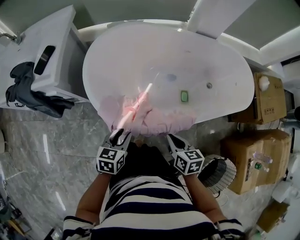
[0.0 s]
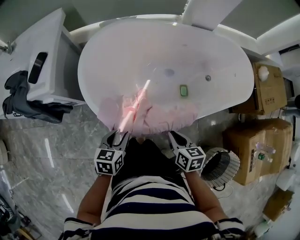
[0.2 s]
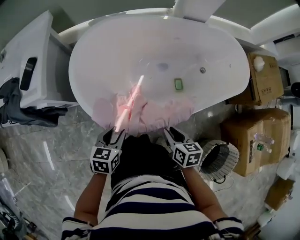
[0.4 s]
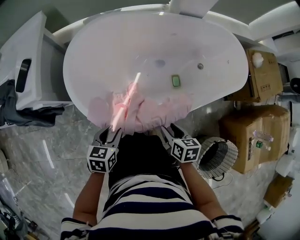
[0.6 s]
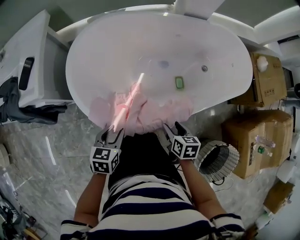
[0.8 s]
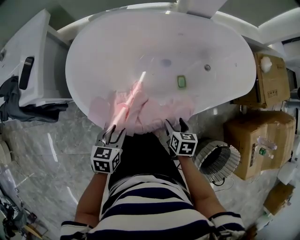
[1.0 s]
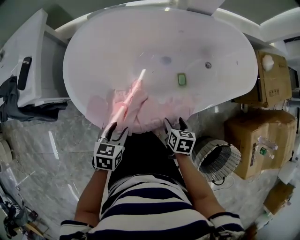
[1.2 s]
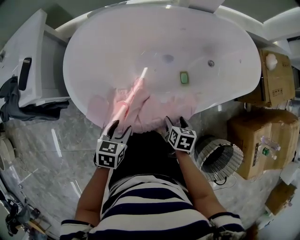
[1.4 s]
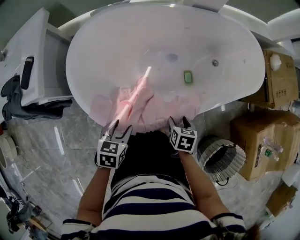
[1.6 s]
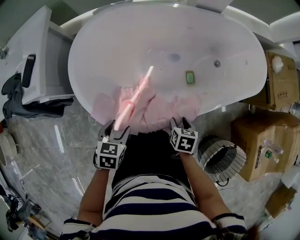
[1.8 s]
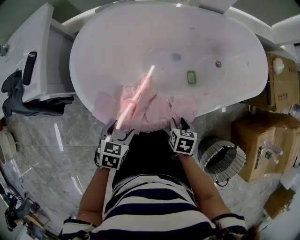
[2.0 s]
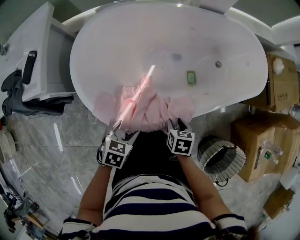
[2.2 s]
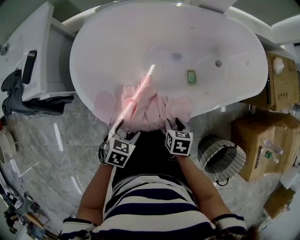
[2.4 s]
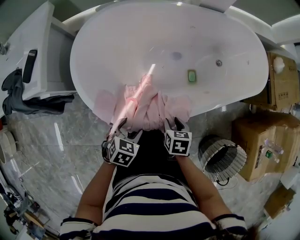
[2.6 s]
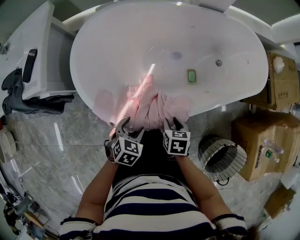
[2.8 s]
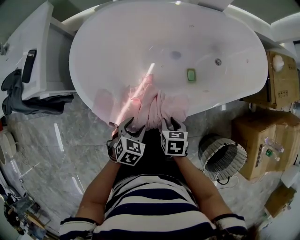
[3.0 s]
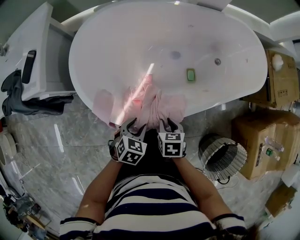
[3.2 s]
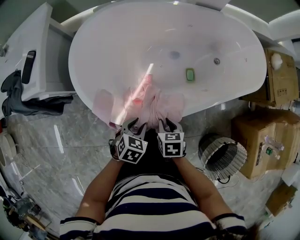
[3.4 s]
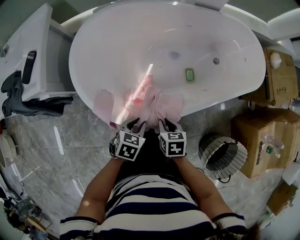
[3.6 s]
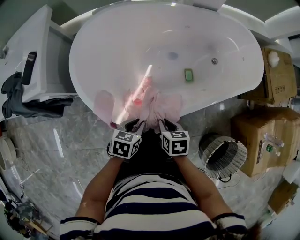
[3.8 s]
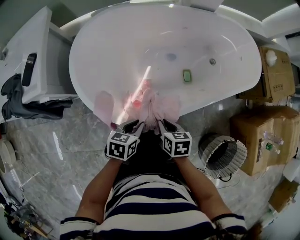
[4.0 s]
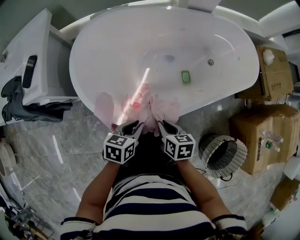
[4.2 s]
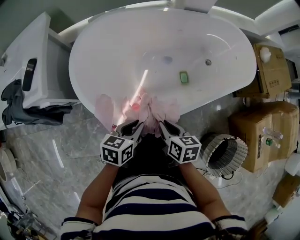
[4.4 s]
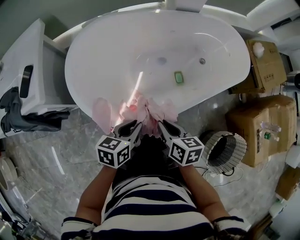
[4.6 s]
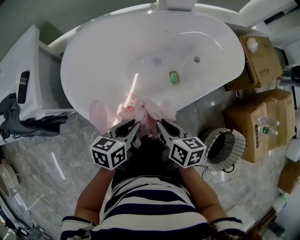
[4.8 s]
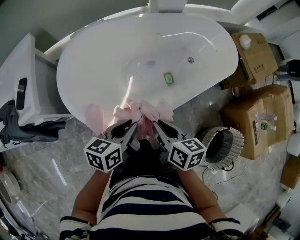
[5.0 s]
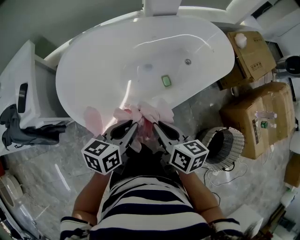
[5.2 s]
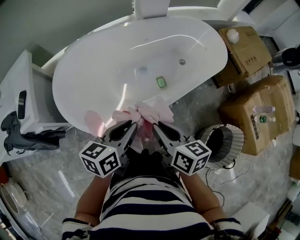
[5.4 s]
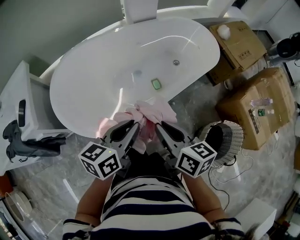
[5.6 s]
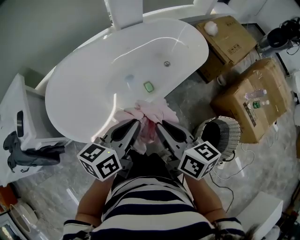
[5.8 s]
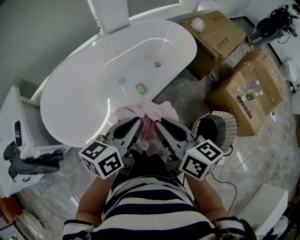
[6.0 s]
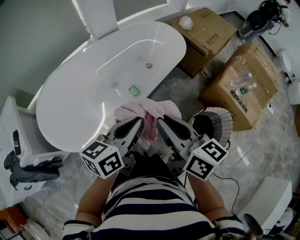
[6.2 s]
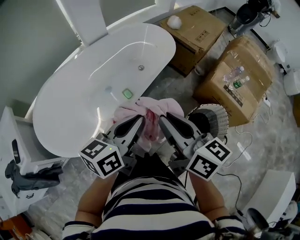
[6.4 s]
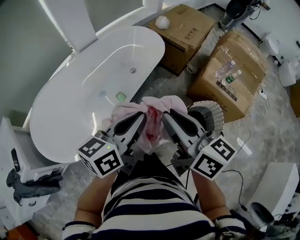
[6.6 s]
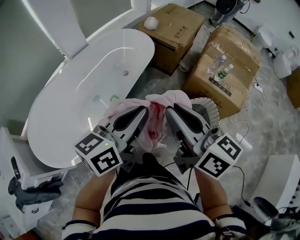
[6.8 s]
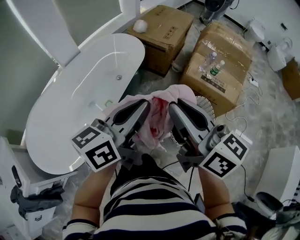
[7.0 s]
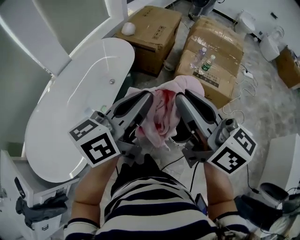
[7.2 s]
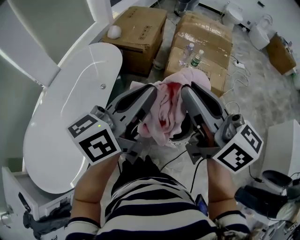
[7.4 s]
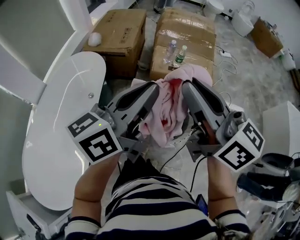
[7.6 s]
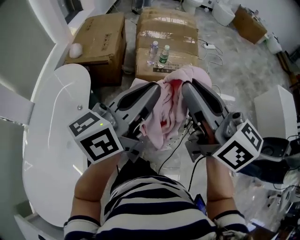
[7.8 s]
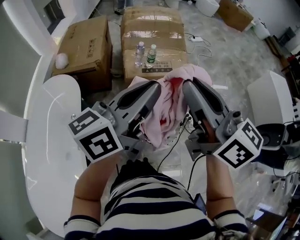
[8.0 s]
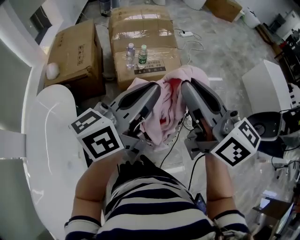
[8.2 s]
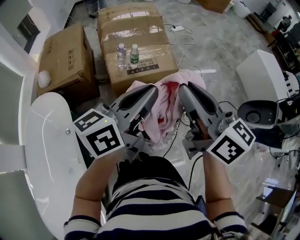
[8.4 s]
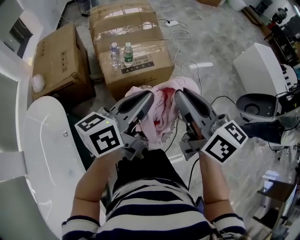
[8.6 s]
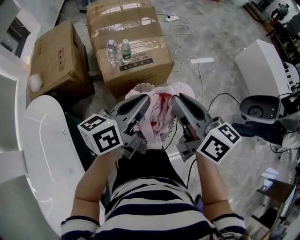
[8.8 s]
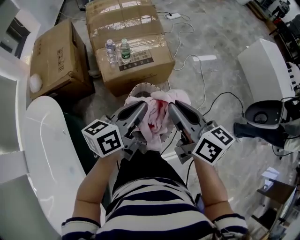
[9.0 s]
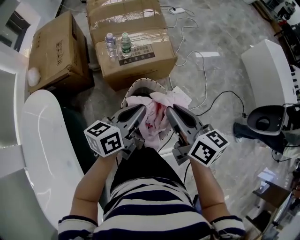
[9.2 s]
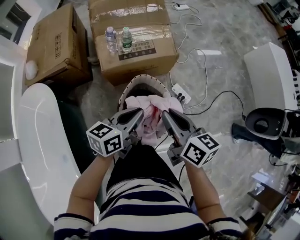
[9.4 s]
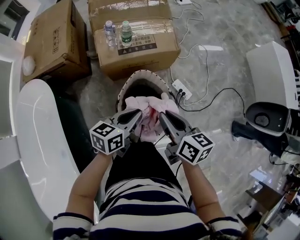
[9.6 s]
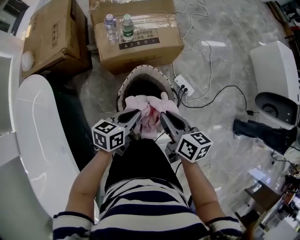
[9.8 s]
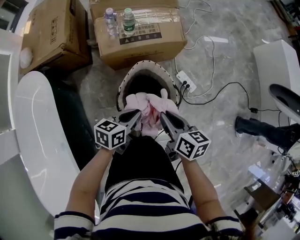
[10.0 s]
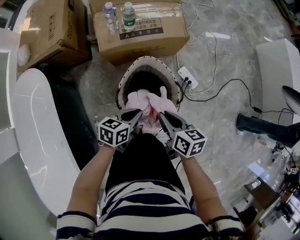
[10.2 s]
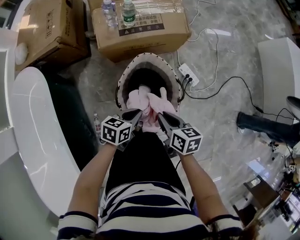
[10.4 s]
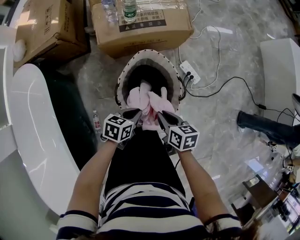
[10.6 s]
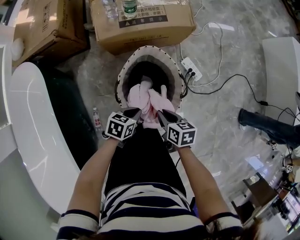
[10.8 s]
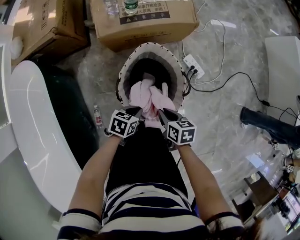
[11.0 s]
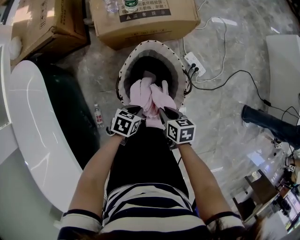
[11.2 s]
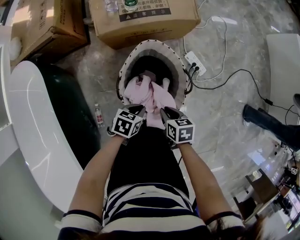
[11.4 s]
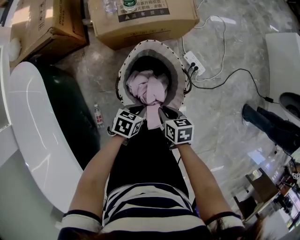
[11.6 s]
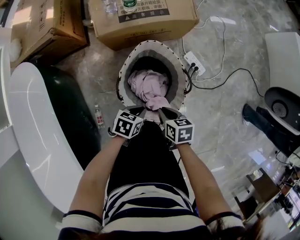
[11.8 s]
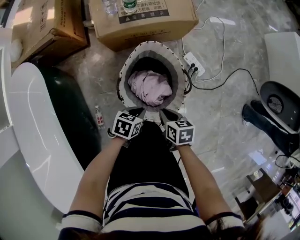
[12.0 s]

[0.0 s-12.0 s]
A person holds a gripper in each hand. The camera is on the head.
0.0 to 1.6 s: The right gripper heads downward and to the right, covering some 10 cm, turns by some 30 degrees, and opens up.
1.6 to 3.0 s: The right gripper is displaced to the left by approximately 5 cm, and closes up; the left gripper shifts by roughly 5 cm.
3.0 to 4.4 s: The two grippers go roughly 10 cm upward. The right gripper swivels roughly 20 degrees, while the left gripper swivels some 30 degrees, and closes.
4.4 to 6.0 s: The right gripper is displaced upward and to the right by about 30 cm, and tips its fingers upward by roughly 30 degrees; the left gripper goes approximately 30 cm to the right and upward, and rotates roughly 30 degrees.
6.0 to 7.6 s: The right gripper shifts by roughly 40 cm, and swivels about 50 degrees. The left gripper moves roughly 40 cm, and changes its angle by about 50 degrees.
7.6 to 9.0 s: The grippers both shift downward by some 20 cm. The left gripper swivels some 30 degrees, while the right gripper rotates about 40 degrees.
9.0 to 10.4 s: Both grippers move downward, approximately 30 cm. The left gripper tilts its fingers roughly 30 degrees downward. The right gripper points its fingers roughly 30 degrees further downward.
10.4 to 12.0 s: Both grippers move downward, approximately 10 cm.

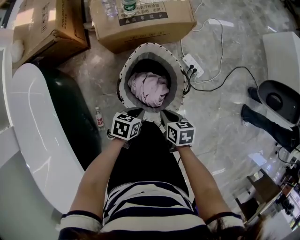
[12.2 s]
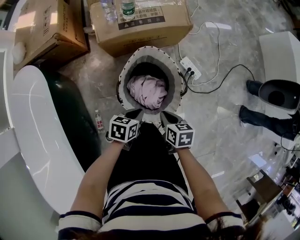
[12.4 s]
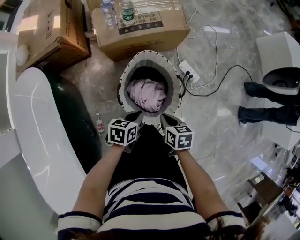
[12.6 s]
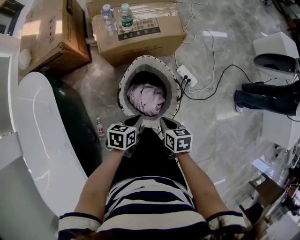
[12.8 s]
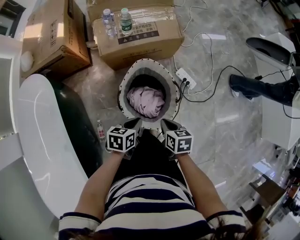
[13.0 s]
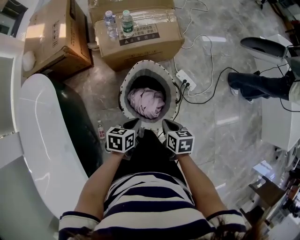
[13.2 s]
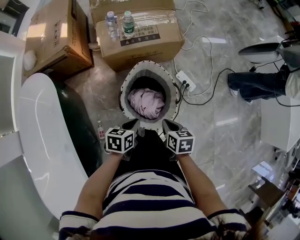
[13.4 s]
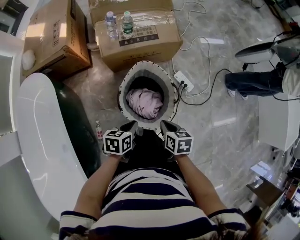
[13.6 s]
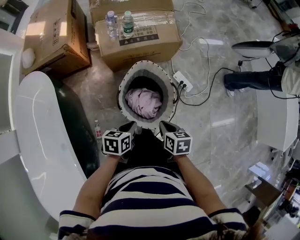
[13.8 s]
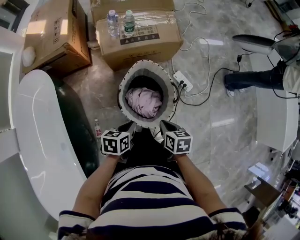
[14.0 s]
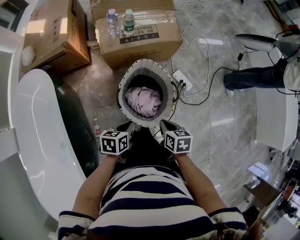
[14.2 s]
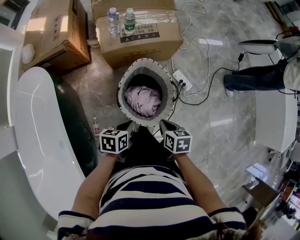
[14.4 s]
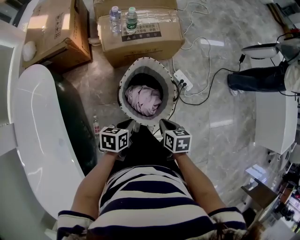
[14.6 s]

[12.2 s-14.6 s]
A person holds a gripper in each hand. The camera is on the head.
12.2 to 13.4 s: Both grippers move upward, roughly 10 cm.
13.4 to 14.6 s: The grippers move only a little.

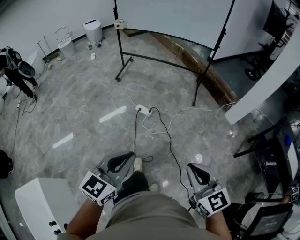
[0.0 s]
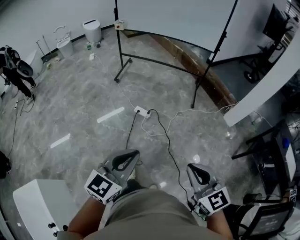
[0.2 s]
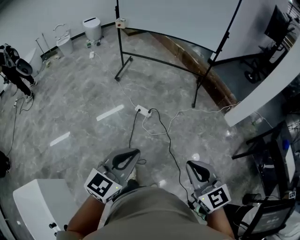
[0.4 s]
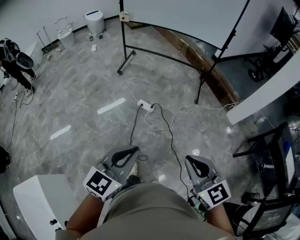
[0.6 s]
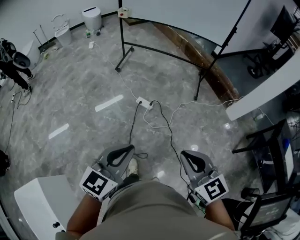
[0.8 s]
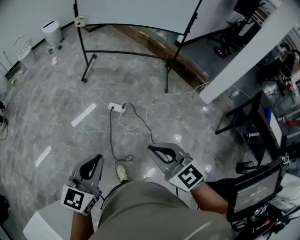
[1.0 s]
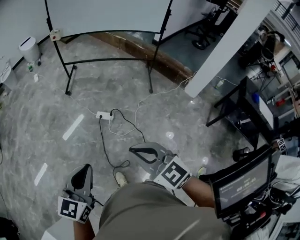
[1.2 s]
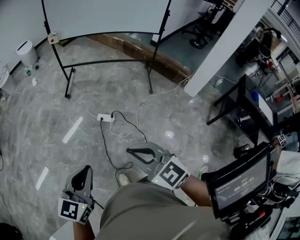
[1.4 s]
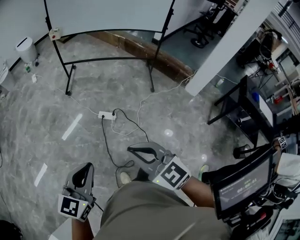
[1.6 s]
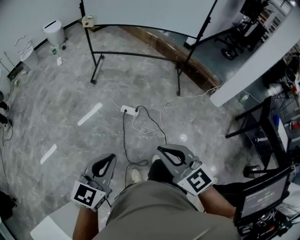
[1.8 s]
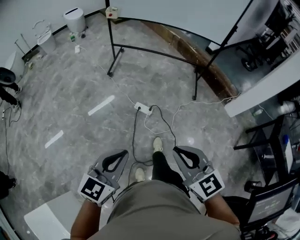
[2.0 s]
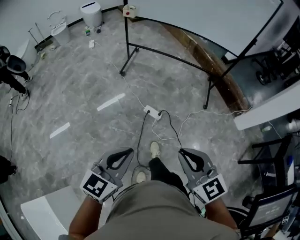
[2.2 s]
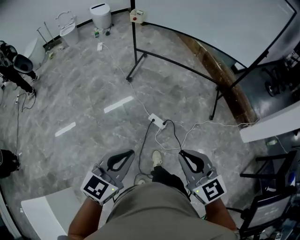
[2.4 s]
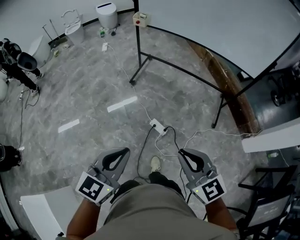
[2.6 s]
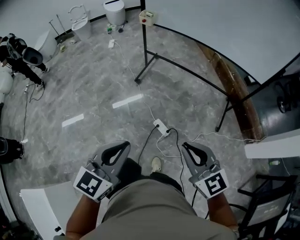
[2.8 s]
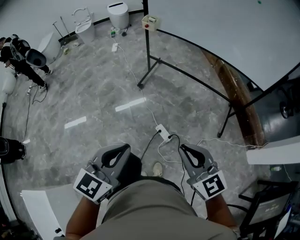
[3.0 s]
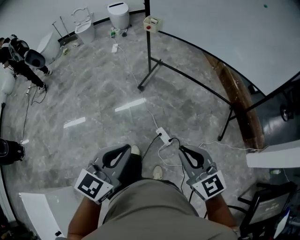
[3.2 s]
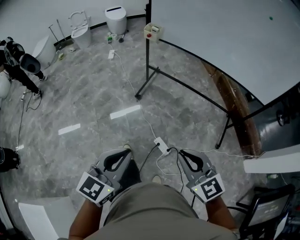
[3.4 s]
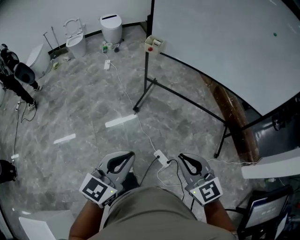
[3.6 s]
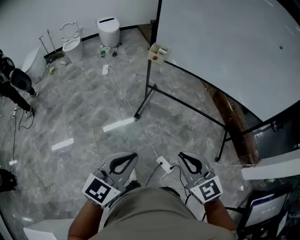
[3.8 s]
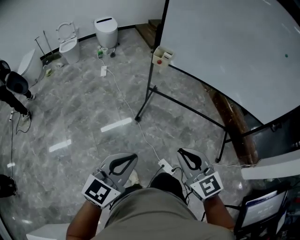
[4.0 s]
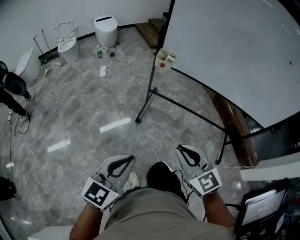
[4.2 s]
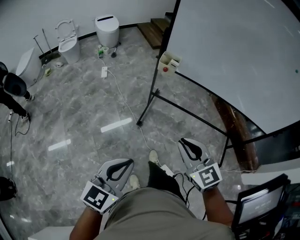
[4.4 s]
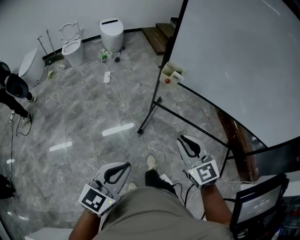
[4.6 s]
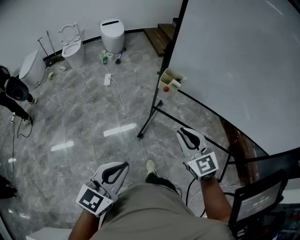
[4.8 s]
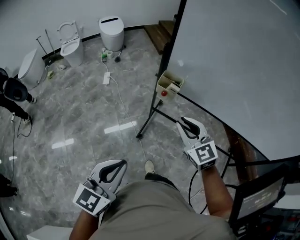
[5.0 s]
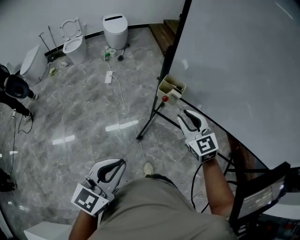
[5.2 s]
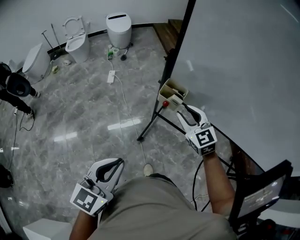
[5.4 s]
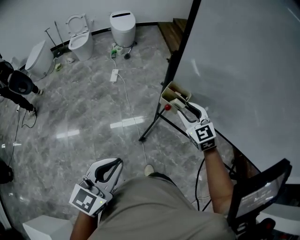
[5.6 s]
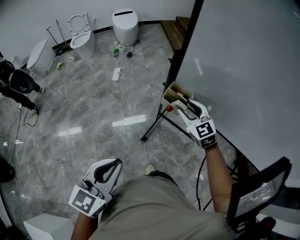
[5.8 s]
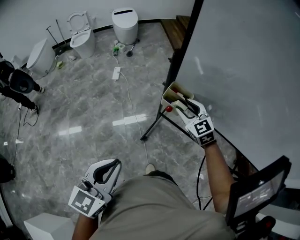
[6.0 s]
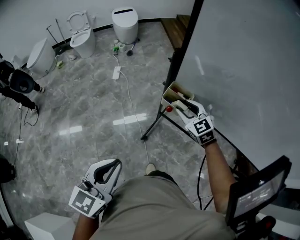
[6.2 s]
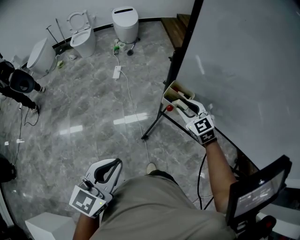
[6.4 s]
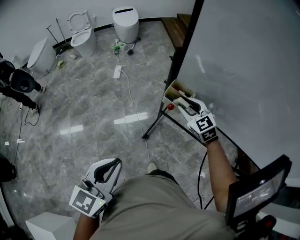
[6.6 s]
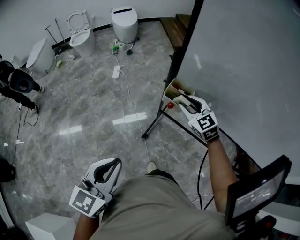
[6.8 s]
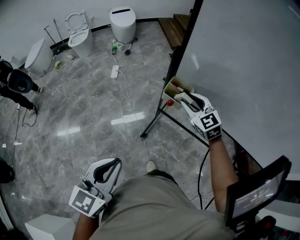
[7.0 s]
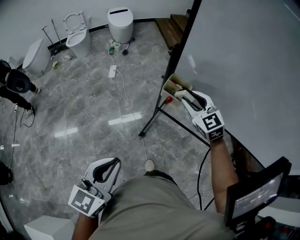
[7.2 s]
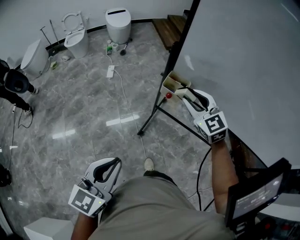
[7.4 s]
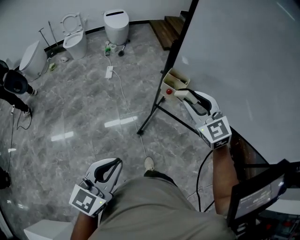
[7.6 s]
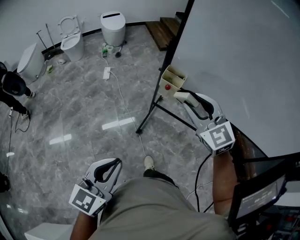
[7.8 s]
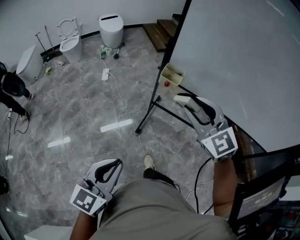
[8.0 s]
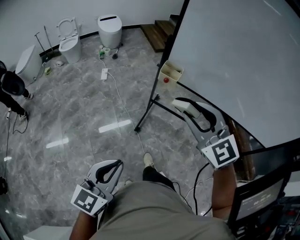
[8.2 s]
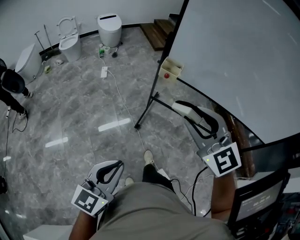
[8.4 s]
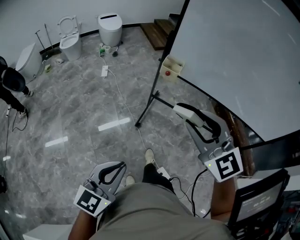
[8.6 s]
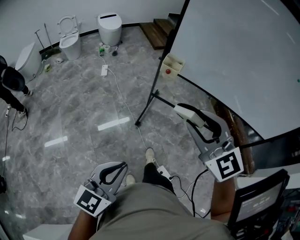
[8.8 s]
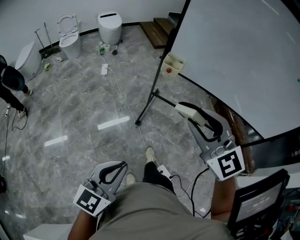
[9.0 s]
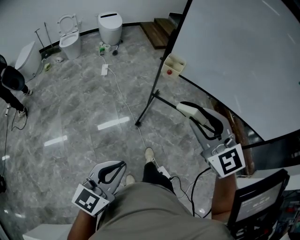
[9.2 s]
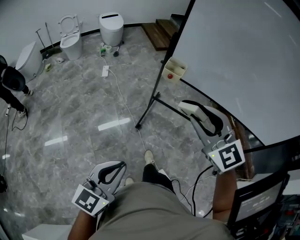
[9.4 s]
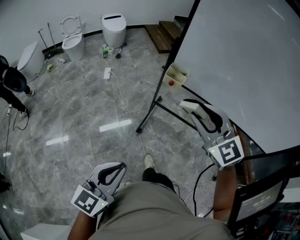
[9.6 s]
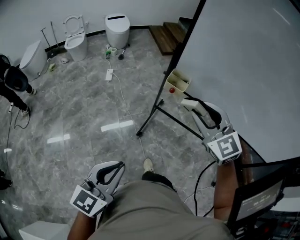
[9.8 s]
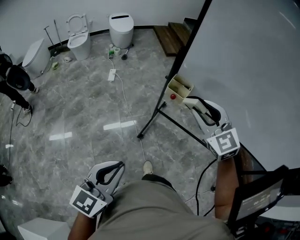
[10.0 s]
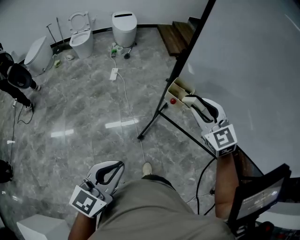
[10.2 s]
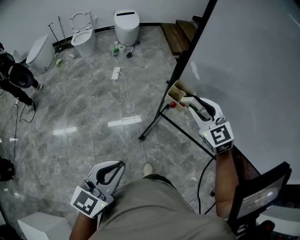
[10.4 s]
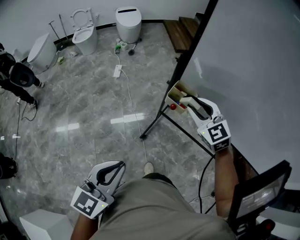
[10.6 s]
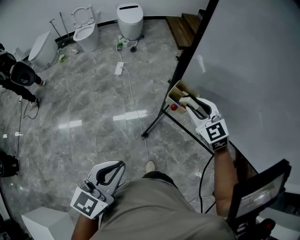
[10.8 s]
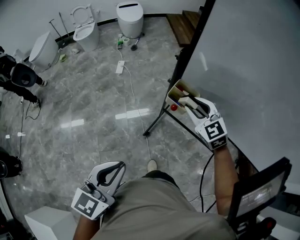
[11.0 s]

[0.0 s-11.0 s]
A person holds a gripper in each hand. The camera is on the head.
0.0 to 1.6 s: Both grippers travel together to the left and forward, some 25 cm.
1.6 to 3.2 s: The two grippers go roughly 35 cm forward.
3.2 to 4.8 s: The two grippers travel together, forward and to the left, some 50 cm.
4.8 to 6.2 s: The left gripper is displaced forward by approximately 15 cm. The right gripper goes about 30 cm forward, and opens up.
6.2 to 7.8 s: The right gripper travels backward and upward by about 25 cm, while the left gripper shifts some 15 cm backward and to the left.
7.8 to 9.4 s: The left gripper goes roughly 10 cm backward; the right gripper heads backward, covering some 15 cm.
9.4 to 11.0 s: The left gripper is displaced forward by roughly 25 cm. Meanwhile the right gripper travels forward and downward by some 40 cm.
